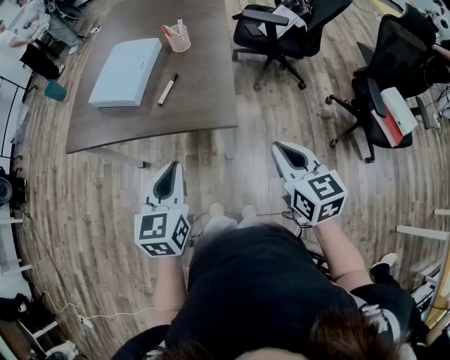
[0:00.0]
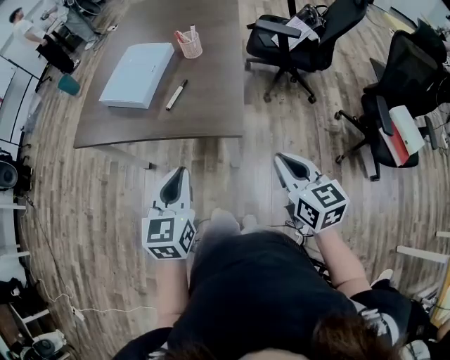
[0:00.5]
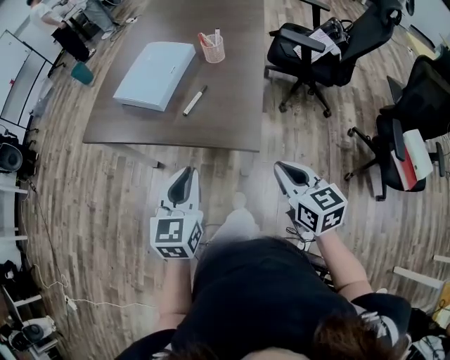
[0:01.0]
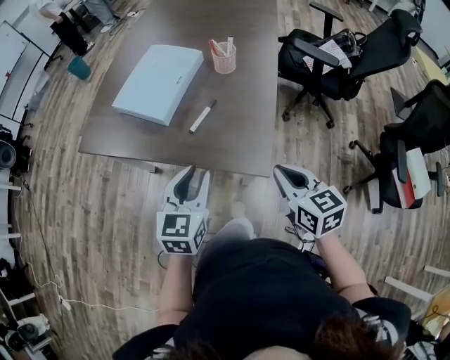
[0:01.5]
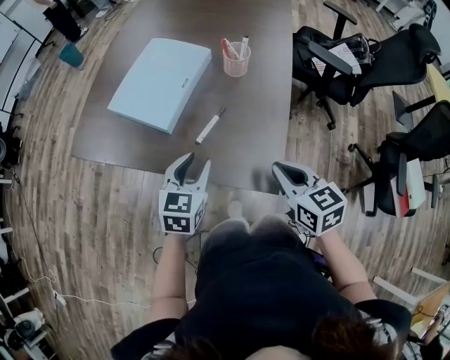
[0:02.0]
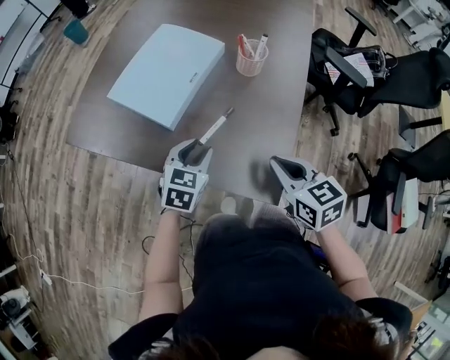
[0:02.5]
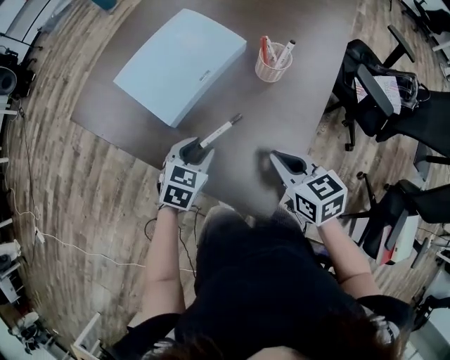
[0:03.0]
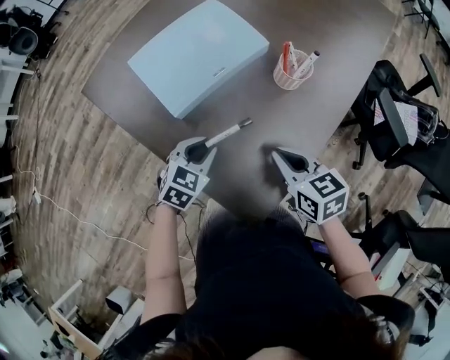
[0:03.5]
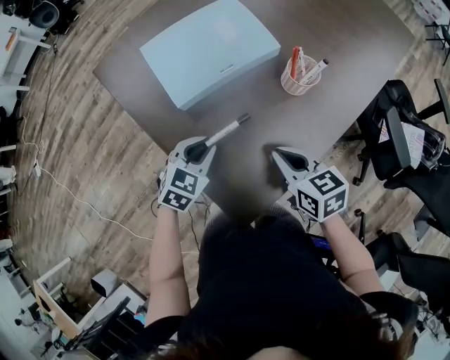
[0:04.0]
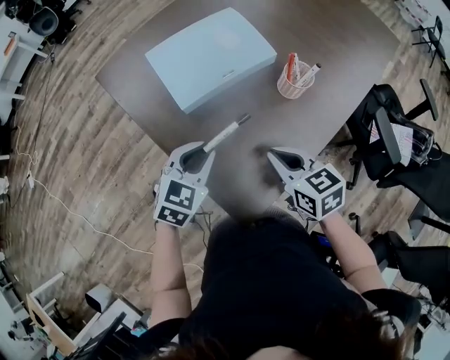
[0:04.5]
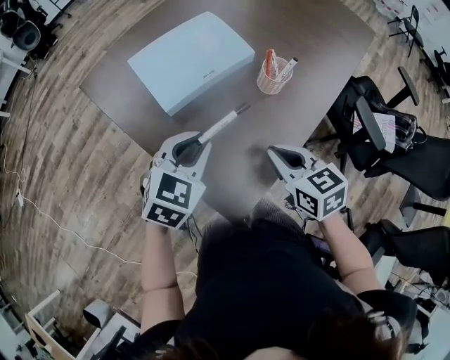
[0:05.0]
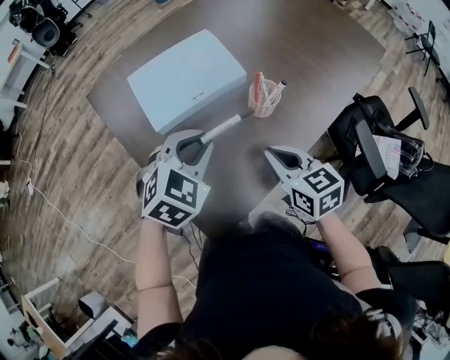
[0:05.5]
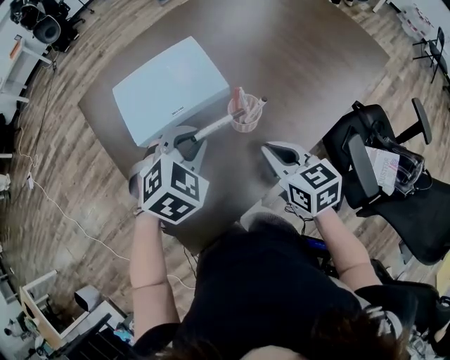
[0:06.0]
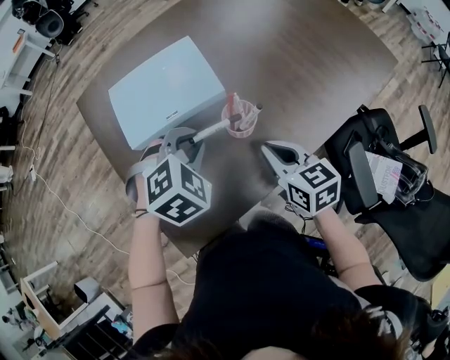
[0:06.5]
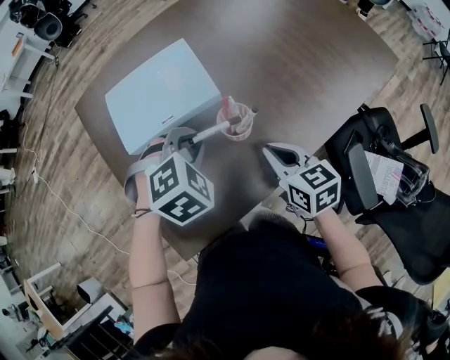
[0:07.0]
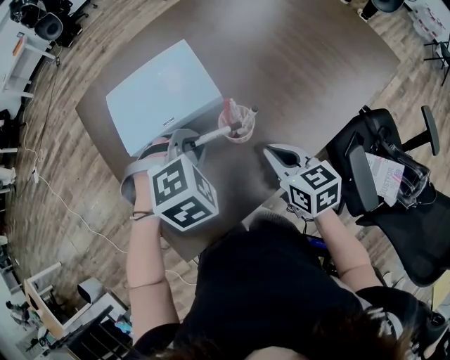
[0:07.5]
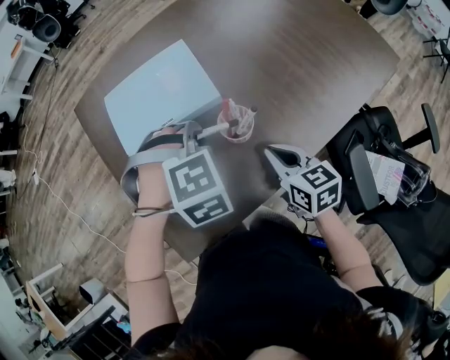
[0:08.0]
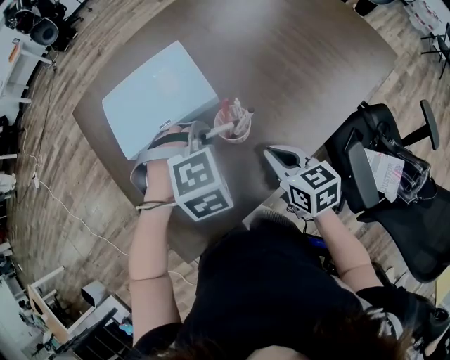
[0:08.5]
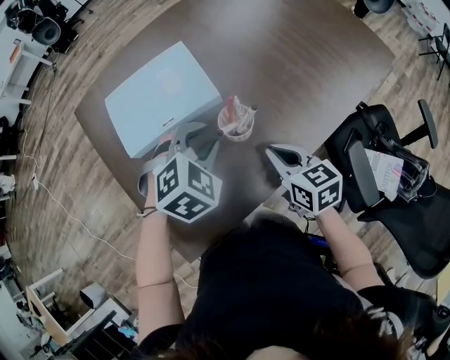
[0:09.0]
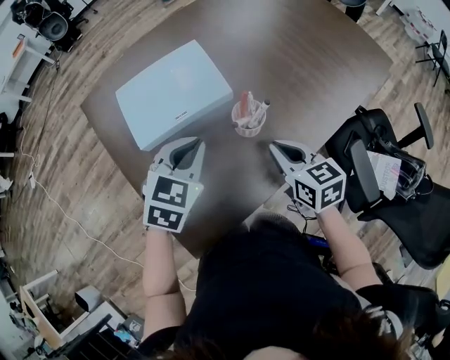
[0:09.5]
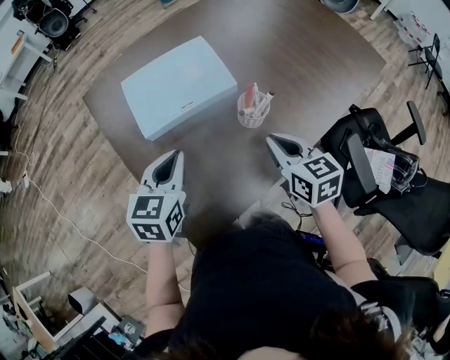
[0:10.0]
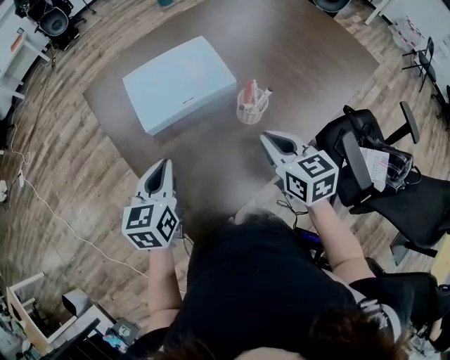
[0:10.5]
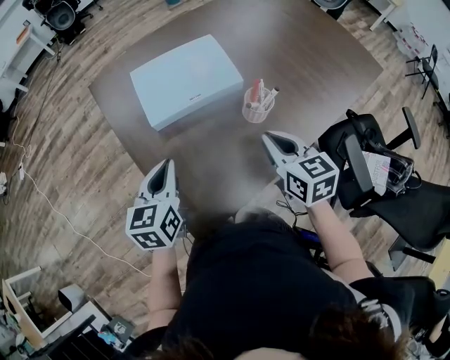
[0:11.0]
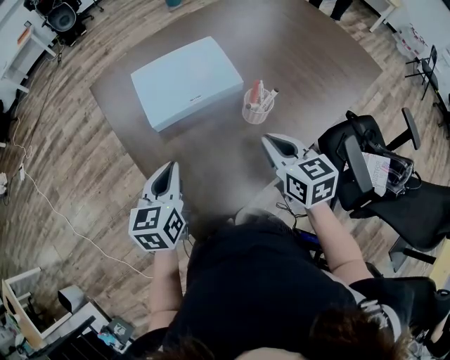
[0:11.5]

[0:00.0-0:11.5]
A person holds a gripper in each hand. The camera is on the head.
0:00.0 to 0:02.0: The two grippers go approximately 25 cm forward. The left gripper opens its fingers, while the right gripper changes its angle by roughly 20 degrees.
0:02.0 to 0:04.0: The left gripper is displaced downward by roughly 10 cm, and swivels roughly 20 degrees. The right gripper ends up approximately 20 cm from where it was, and turns by about 40 degrees.
0:04.0 to 0:06.0: The left gripper is displaced to the right, upward and forward by roughly 20 cm. The right gripper goes some 15 cm to the right and forward.
0:06.0 to 0:07.5: The right gripper ends up some 5 cm from where it was; the left gripper changes its angle by about 20 degrees.
0:07.5 to 0:09.5: The left gripper ends up approximately 5 cm from where it was, and turns by approximately 50 degrees.
0:09.5 to 0:11.5: The right gripper goes roughly 5 cm to the left. Meanwhile the left gripper travels to the left and backward by about 15 cm, and rotates approximately 40 degrees.

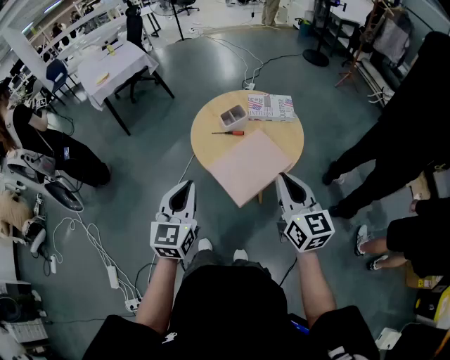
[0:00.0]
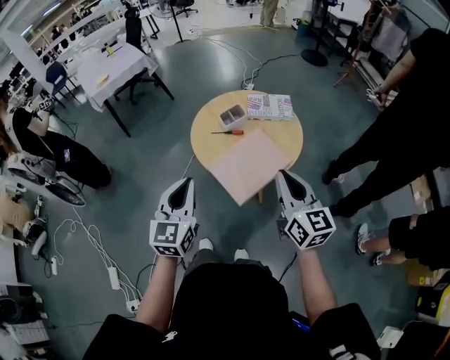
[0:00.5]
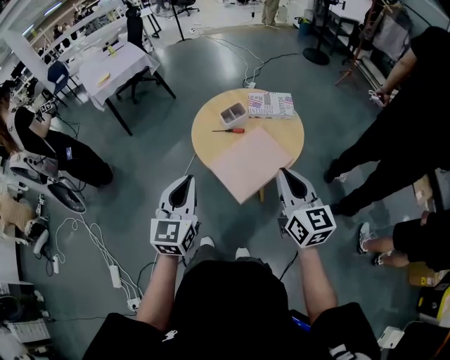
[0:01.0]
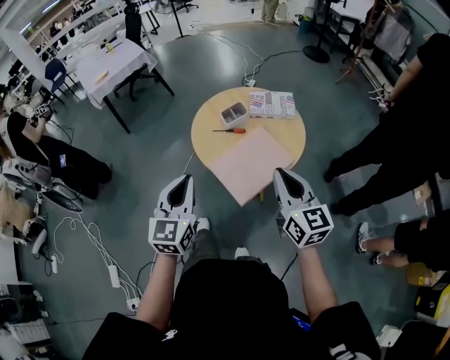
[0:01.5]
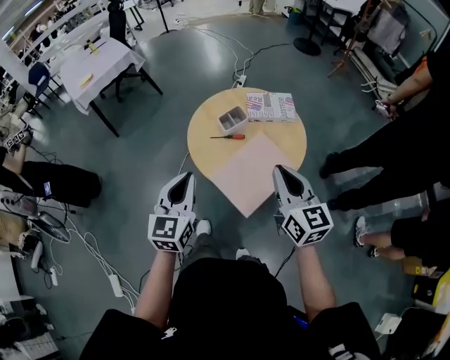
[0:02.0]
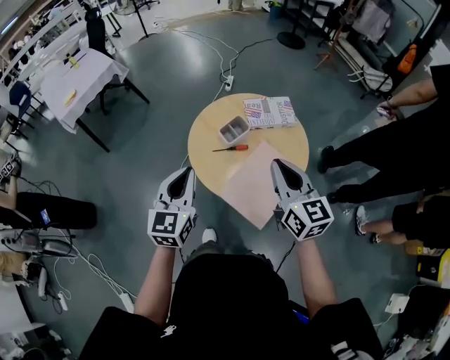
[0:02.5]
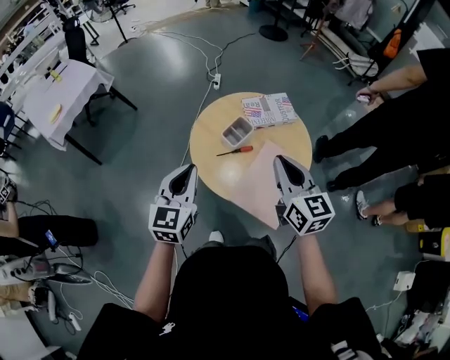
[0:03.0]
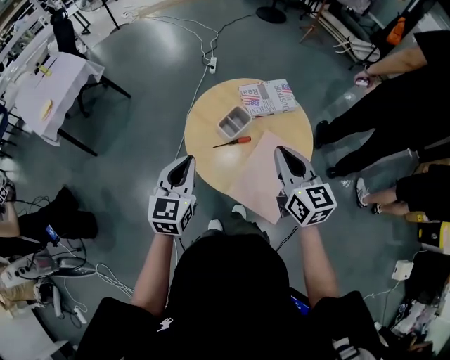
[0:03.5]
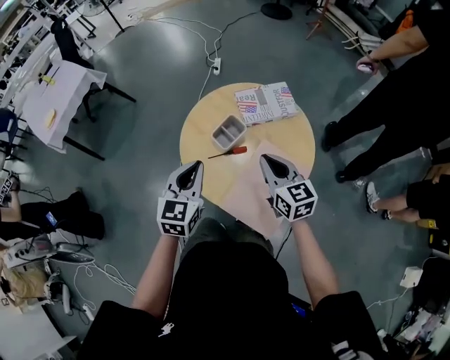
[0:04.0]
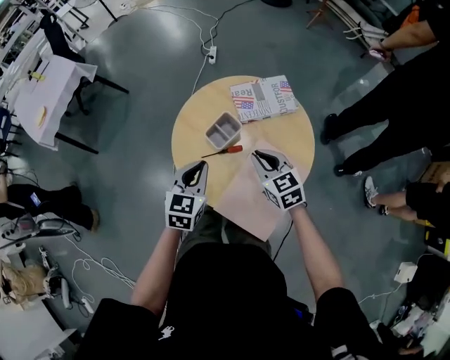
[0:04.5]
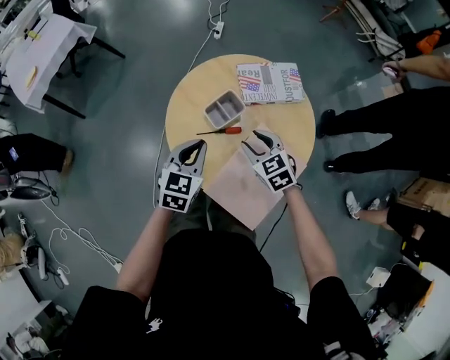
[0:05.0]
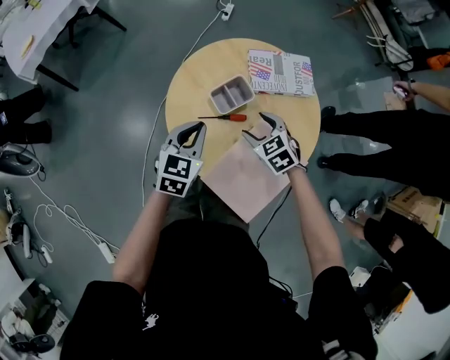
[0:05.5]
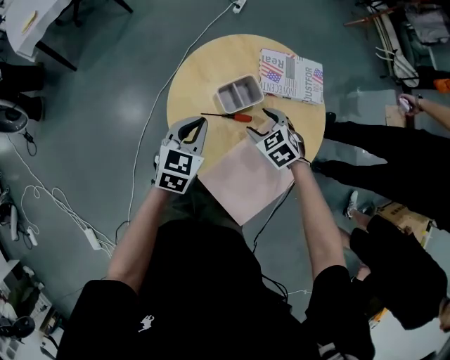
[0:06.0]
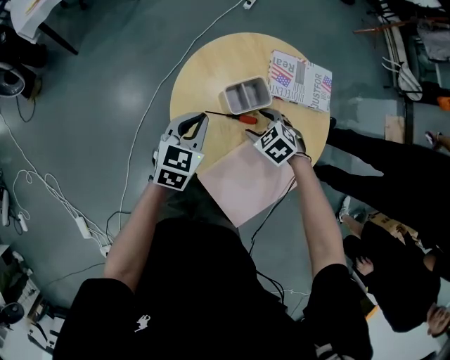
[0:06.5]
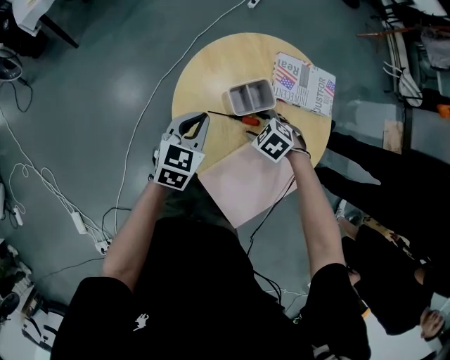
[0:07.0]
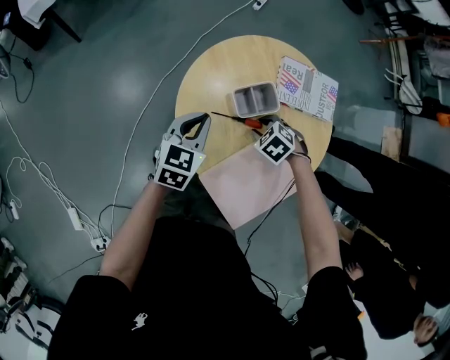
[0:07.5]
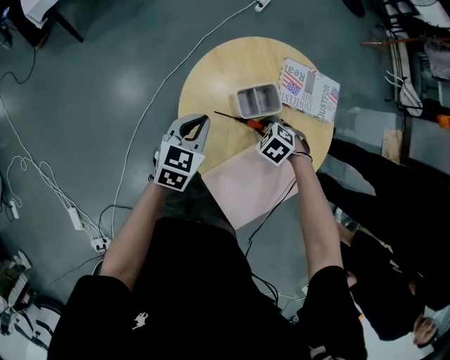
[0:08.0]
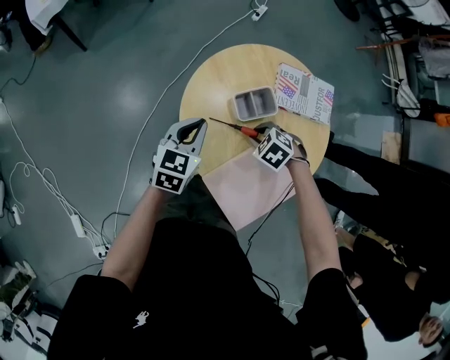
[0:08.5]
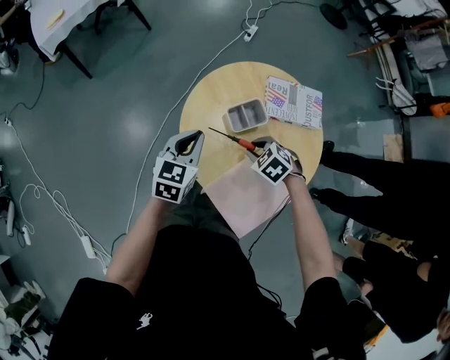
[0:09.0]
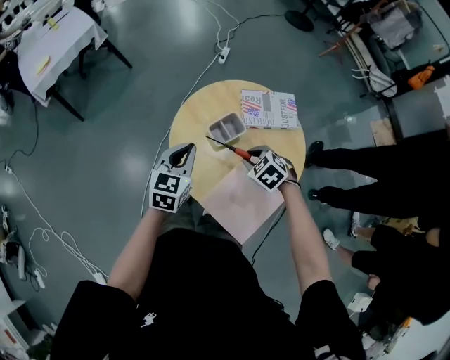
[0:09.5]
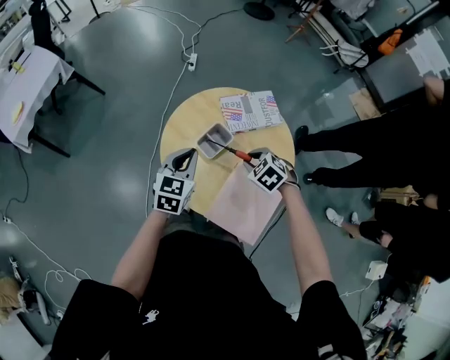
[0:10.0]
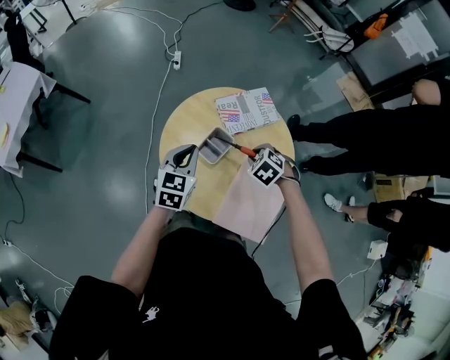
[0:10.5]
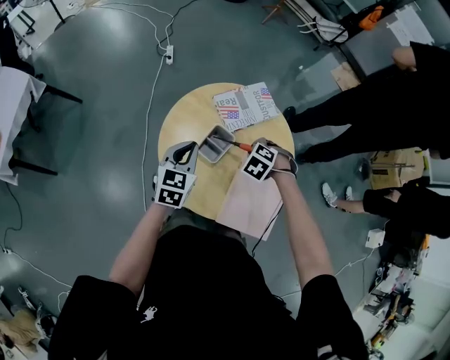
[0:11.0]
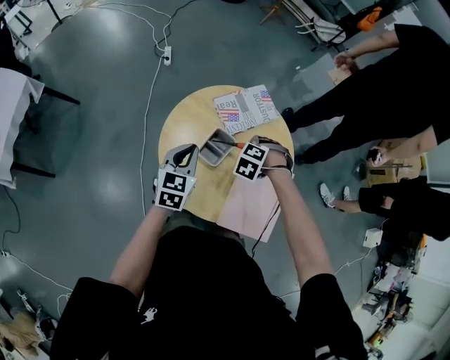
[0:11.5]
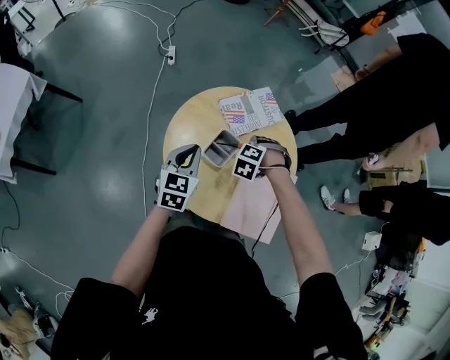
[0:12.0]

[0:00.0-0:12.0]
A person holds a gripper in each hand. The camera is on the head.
0:00.0 to 0:02.0: Both grippers move forward, approximately 10 cm.
0:02.0 to 0:04.0: The right gripper is displaced forward and downward by roughly 20 cm. The left gripper heads forward, covering about 20 cm, and changes its angle by about 20 degrees.
0:04.0 to 0:06.0: The right gripper heads downward and forward, covering approximately 20 cm, points its fingers approximately 40 degrees further downward, and opens, while the left gripper moves downward, approximately 15 cm.
0:06.0 to 0:08.0: The right gripper is displaced downward by some 5 cm, swivels about 30 degrees, and closes up.
0:08.0 to 0:10.0: Both grippers travel together upward, about 10 cm. The left gripper swivels roughly 20 degrees. The right gripper rotates approximately 30 degrees.
0:10.0 to 0:12.0: The left gripper changes place by some 10 cm. The right gripper shifts by approximately 10 cm, and changes its angle by roughly 40 degrees.

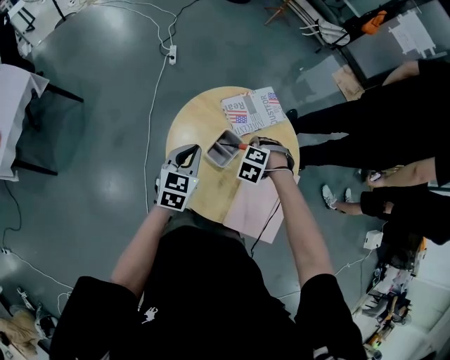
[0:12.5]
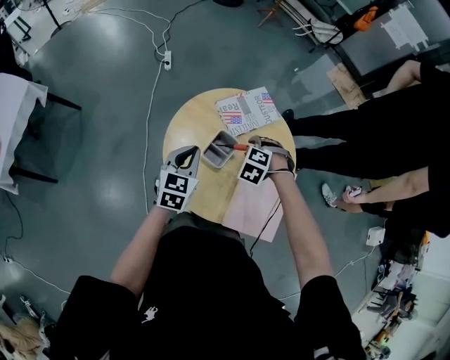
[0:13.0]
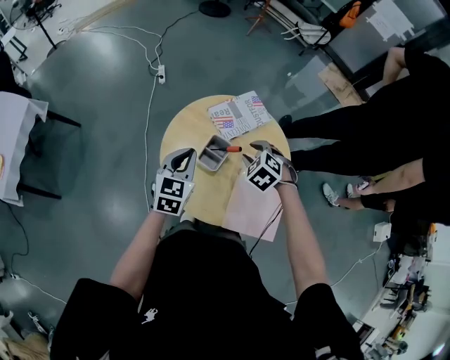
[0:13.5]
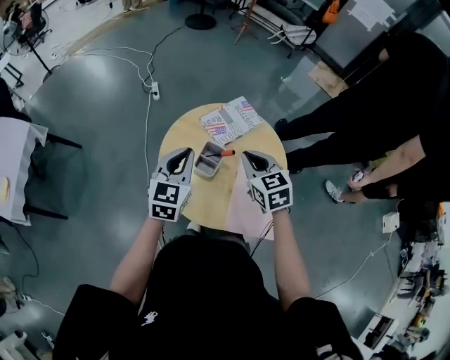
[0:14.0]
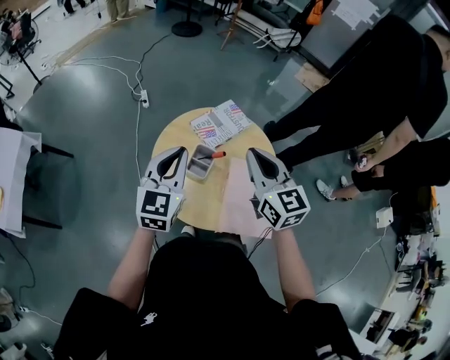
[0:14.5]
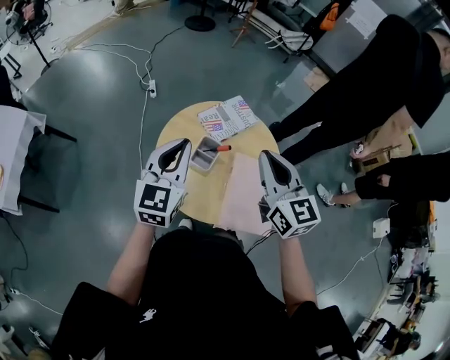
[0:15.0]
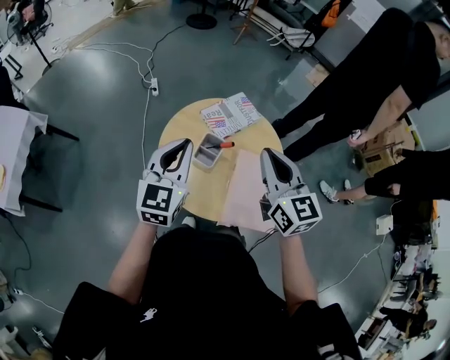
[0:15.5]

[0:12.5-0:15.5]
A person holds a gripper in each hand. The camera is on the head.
0:12.5 to 0:14.0: The left gripper goes approximately 10 cm upward; the right gripper moves upward, about 20 cm, and tips its fingers upward by some 40 degrees.
0:14.0 to 0:15.5: The right gripper shifts some 15 cm upward and backward, and changes its angle by roughly 30 degrees, while the left gripper moves upward, approximately 10 cm.
